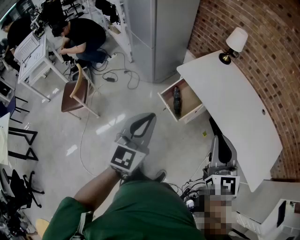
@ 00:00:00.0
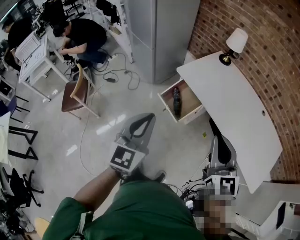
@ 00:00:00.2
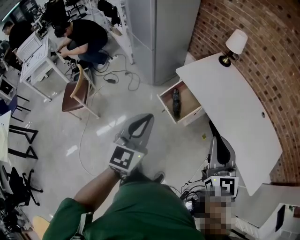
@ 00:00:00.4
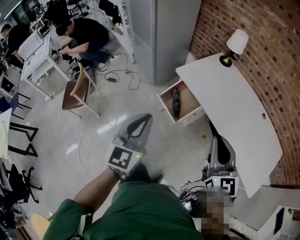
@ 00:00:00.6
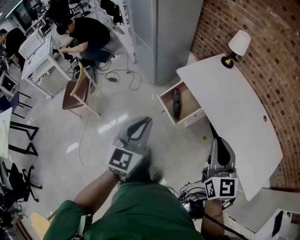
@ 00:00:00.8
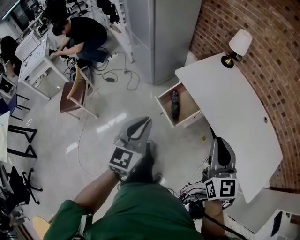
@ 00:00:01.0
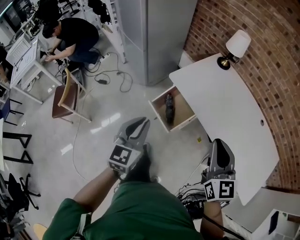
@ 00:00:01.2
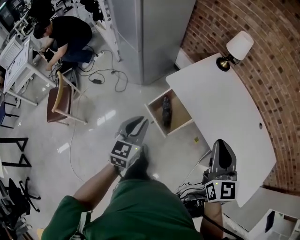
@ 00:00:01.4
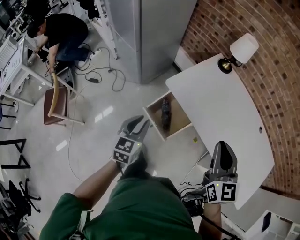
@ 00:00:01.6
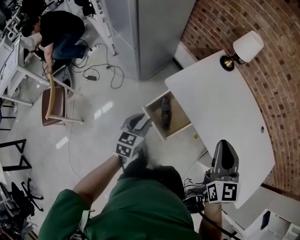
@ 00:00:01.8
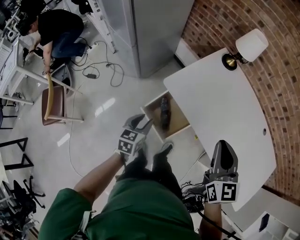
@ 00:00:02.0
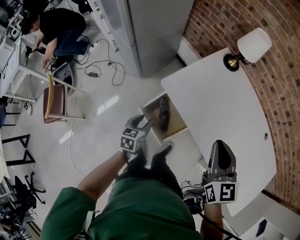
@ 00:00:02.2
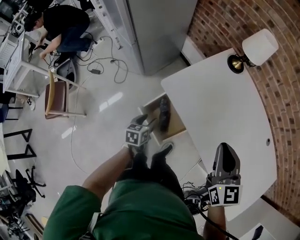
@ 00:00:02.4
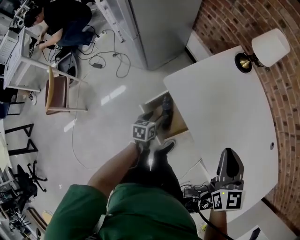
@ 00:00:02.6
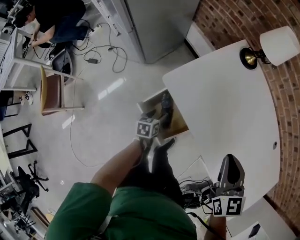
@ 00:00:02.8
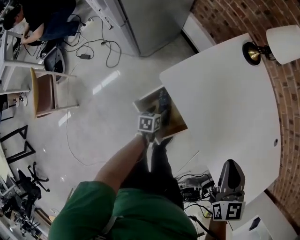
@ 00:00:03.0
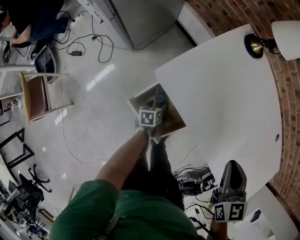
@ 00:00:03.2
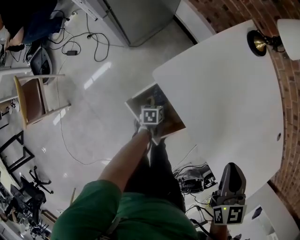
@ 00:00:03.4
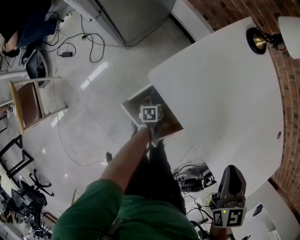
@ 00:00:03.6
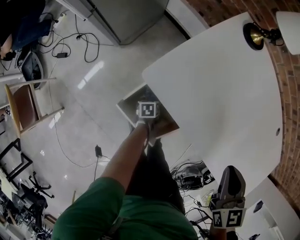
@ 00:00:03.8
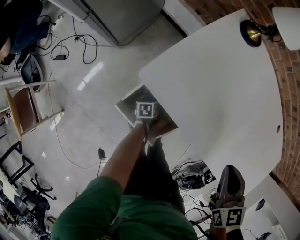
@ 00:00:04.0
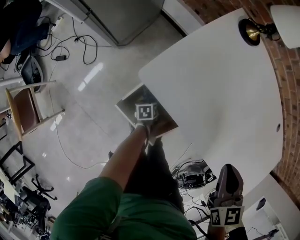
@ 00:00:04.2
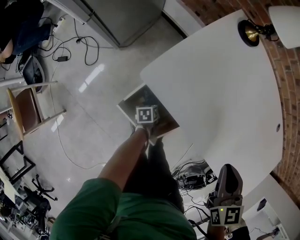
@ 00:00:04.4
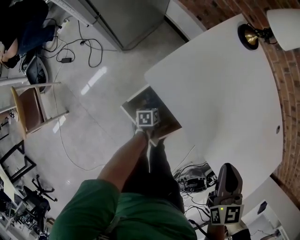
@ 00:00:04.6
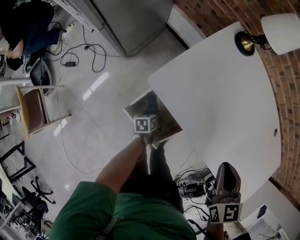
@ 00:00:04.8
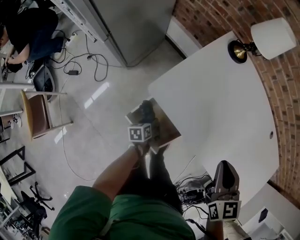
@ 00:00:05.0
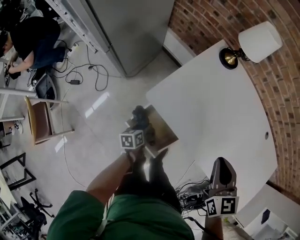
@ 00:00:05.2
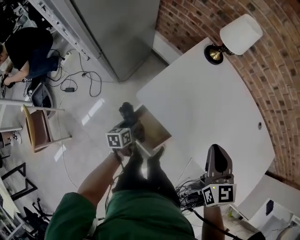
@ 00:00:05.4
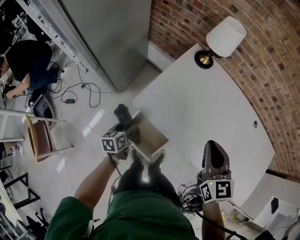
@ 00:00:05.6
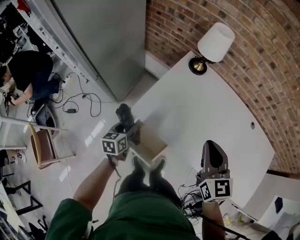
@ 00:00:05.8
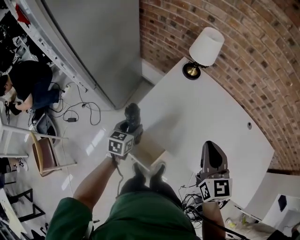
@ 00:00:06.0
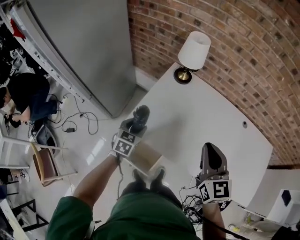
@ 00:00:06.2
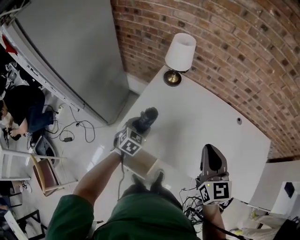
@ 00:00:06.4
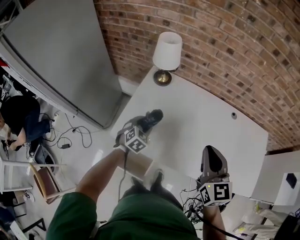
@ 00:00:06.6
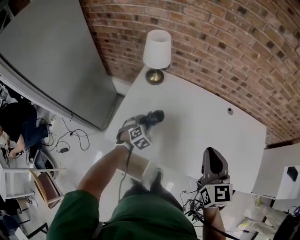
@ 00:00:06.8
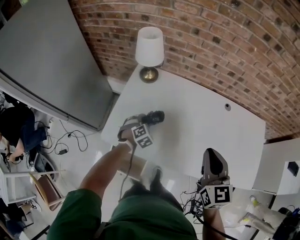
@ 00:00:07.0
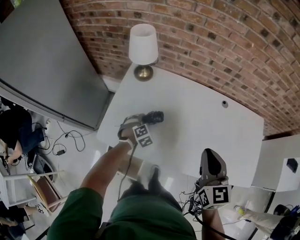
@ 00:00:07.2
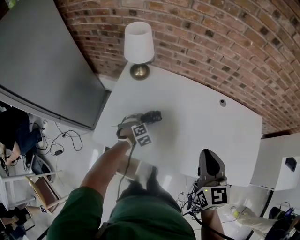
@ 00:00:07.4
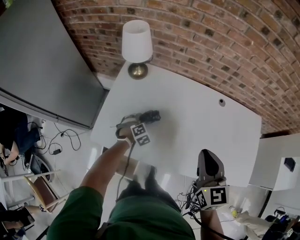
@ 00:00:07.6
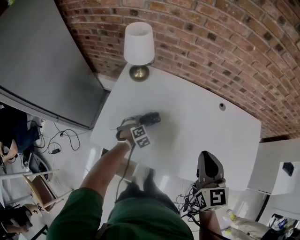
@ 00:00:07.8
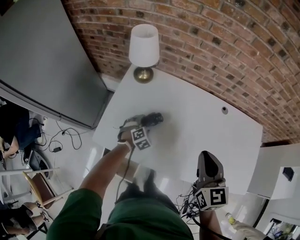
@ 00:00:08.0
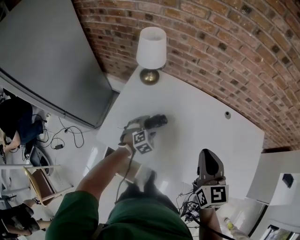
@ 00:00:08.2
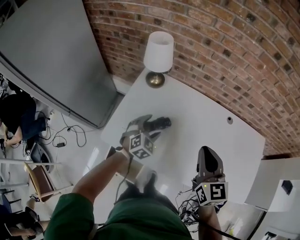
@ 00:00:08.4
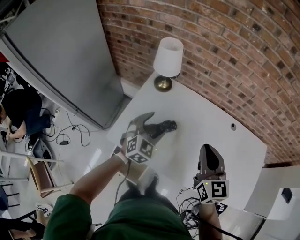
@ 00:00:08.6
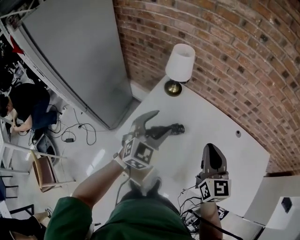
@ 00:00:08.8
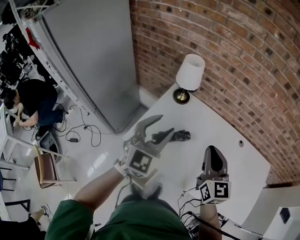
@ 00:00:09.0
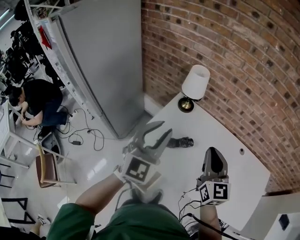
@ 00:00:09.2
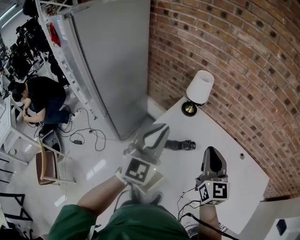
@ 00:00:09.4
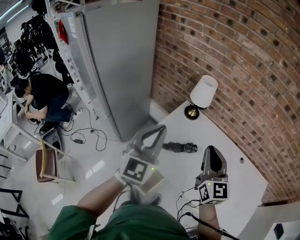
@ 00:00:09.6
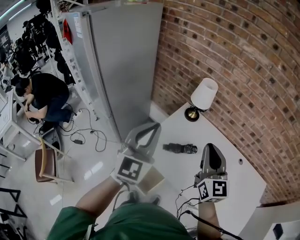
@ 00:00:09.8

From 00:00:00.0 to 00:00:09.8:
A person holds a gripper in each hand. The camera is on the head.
From 00:00:00.0 to 00:00:01.4: The right gripper moves forward, some 20 cm, while the left gripper heads forward and downward, covering some 25 cm.
From 00:00:01.4 to 00:00:02.8: The right gripper is displaced forward and downward by about 25 cm. Meanwhile the left gripper goes roughly 40 cm downward and forward, changes its angle by roughly 40 degrees, and opens up.
From 00:00:02.8 to 00:00:04.2: The right gripper shifts roughly 10 cm downward, while the left gripper travels downward by some 20 cm.
From 00:00:04.2 to 00:00:05.6: The left gripper shifts about 35 cm upward, and swivels approximately 30 degrees. The right gripper moves upward, roughly 15 cm, and rotates about 20 degrees.
From 00:00:05.6 to 00:00:07.0: The left gripper goes approximately 35 cm to the right and forward, and twists about 90 degrees clockwise, seen from behind; the right gripper goes some 20 cm to the right, and turns by about 20 degrees.
From 00:00:07.0 to 00:00:08.4: The right gripper travels forward by some 5 cm; the left gripper moves upward, some 10 cm, changes its angle by approximately 20 degrees, and opens up.
From 00:00:08.4 to 00:00:09.8: The left gripper moves upward, to the left and backward, roughly 50 cm, points its fingers some 50 degrees further upward, and closes. Meanwhile the right gripper is displaced to the left and upward by some 20 cm, and turns by roughly 20 degrees.

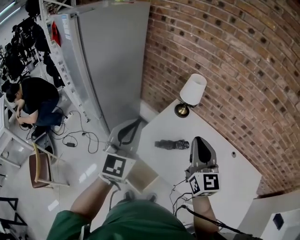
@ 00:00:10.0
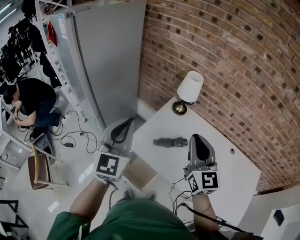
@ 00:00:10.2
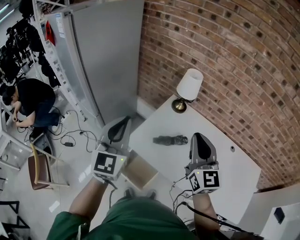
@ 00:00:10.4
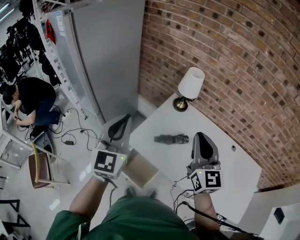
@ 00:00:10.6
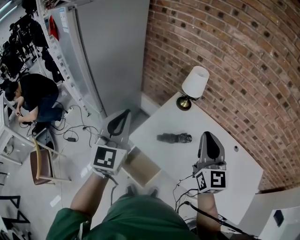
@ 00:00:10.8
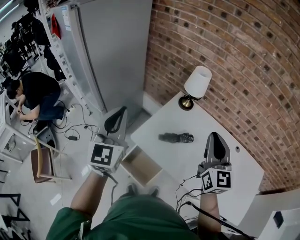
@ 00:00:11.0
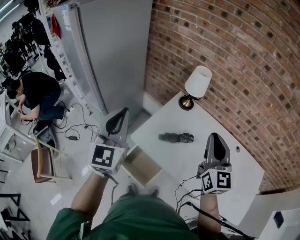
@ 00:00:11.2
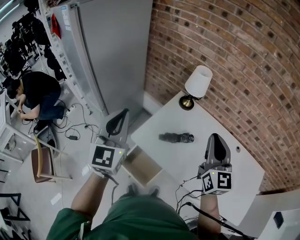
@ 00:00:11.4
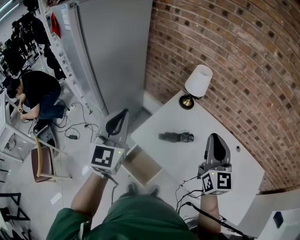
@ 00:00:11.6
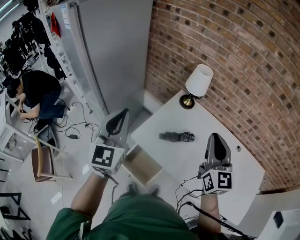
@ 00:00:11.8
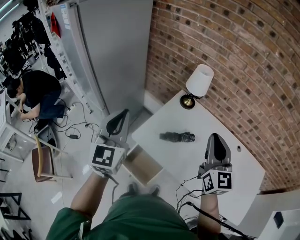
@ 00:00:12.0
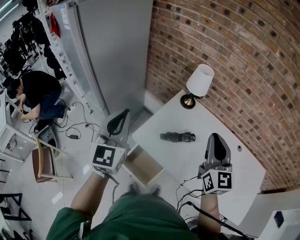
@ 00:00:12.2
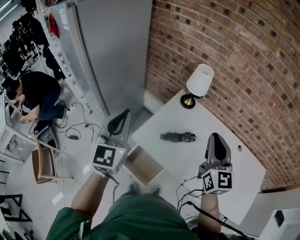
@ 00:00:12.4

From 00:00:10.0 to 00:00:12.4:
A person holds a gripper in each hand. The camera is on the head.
From 00:00:10.0 to 00:00:11.2: The left gripper moves to the left, roughly 5 cm.
From 00:00:11.2 to 00:00:12.4: There are only small adjustments of the grippers.

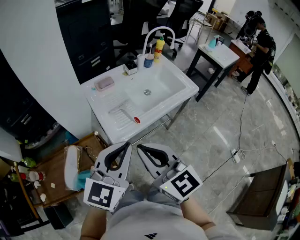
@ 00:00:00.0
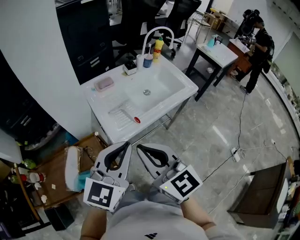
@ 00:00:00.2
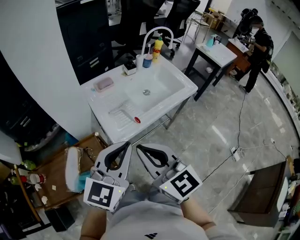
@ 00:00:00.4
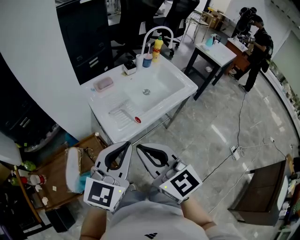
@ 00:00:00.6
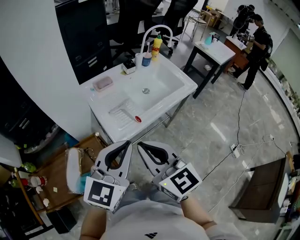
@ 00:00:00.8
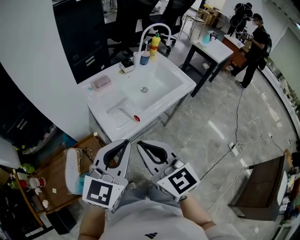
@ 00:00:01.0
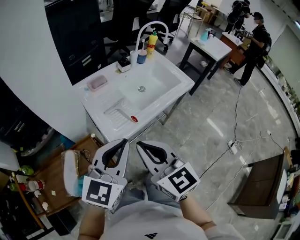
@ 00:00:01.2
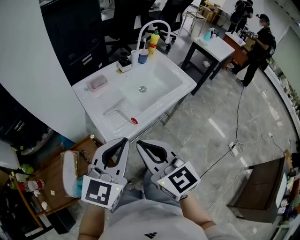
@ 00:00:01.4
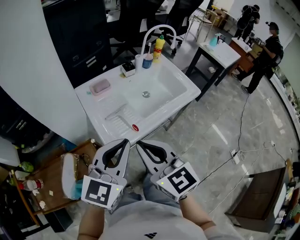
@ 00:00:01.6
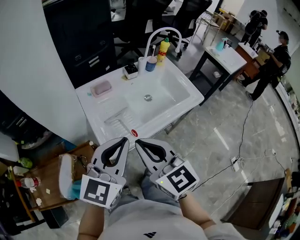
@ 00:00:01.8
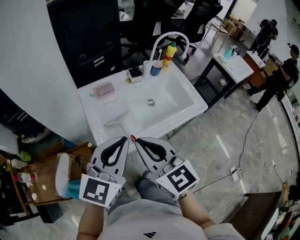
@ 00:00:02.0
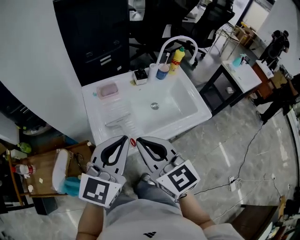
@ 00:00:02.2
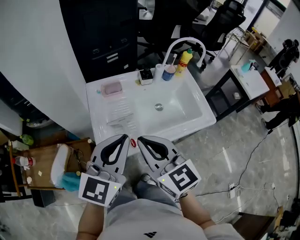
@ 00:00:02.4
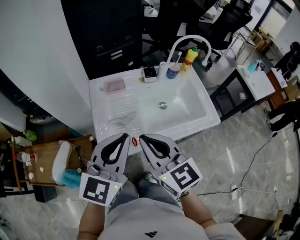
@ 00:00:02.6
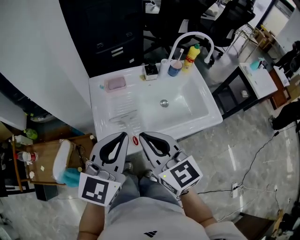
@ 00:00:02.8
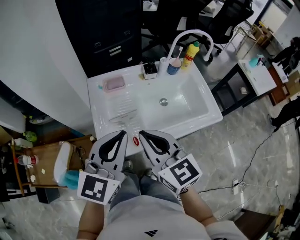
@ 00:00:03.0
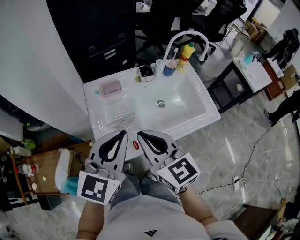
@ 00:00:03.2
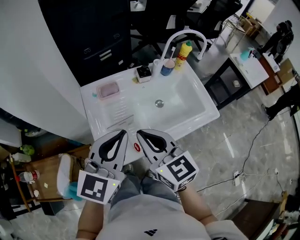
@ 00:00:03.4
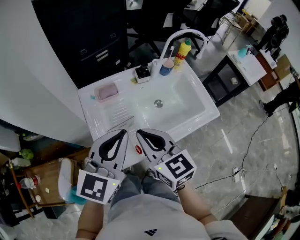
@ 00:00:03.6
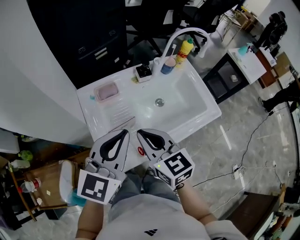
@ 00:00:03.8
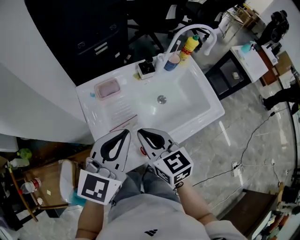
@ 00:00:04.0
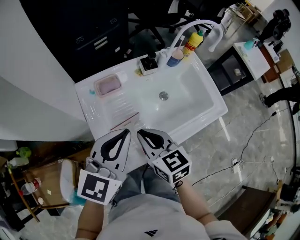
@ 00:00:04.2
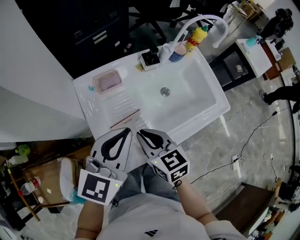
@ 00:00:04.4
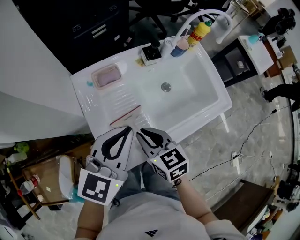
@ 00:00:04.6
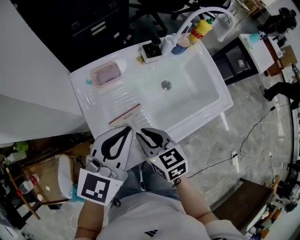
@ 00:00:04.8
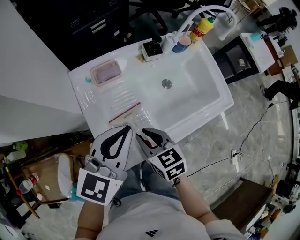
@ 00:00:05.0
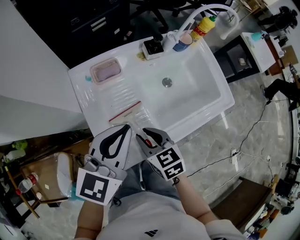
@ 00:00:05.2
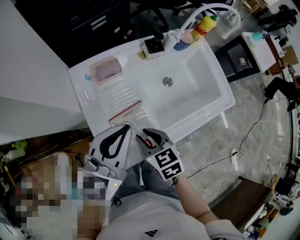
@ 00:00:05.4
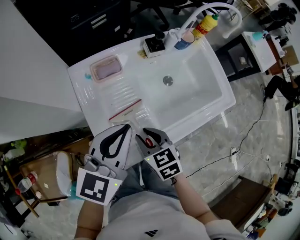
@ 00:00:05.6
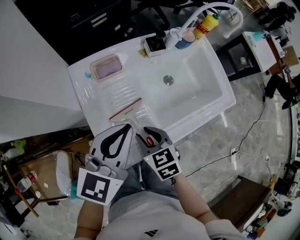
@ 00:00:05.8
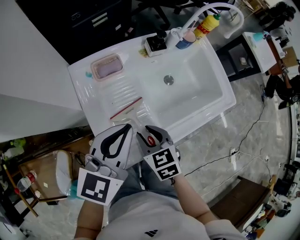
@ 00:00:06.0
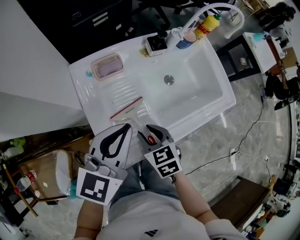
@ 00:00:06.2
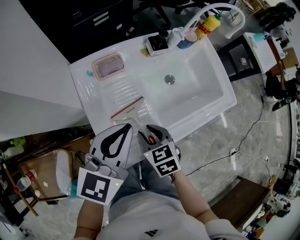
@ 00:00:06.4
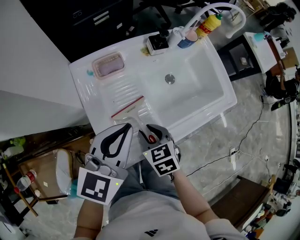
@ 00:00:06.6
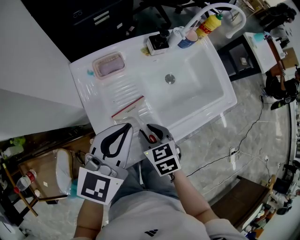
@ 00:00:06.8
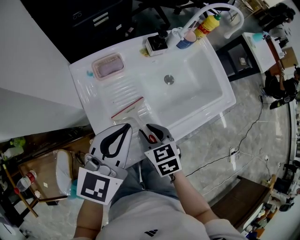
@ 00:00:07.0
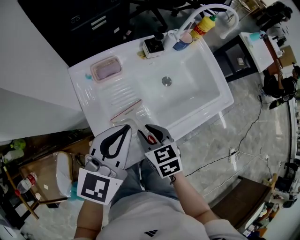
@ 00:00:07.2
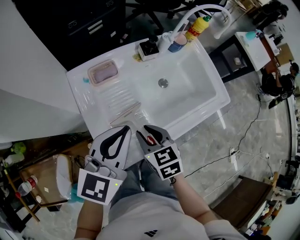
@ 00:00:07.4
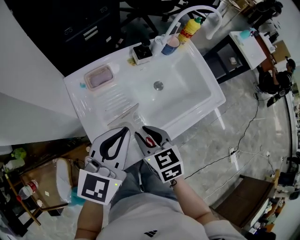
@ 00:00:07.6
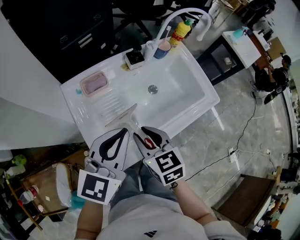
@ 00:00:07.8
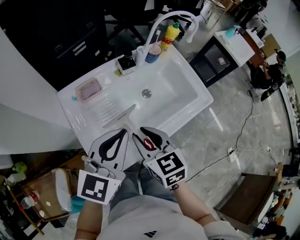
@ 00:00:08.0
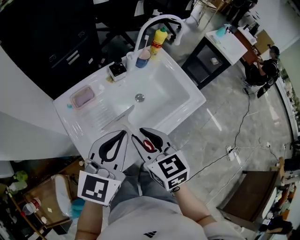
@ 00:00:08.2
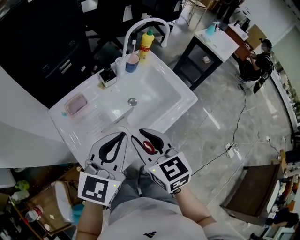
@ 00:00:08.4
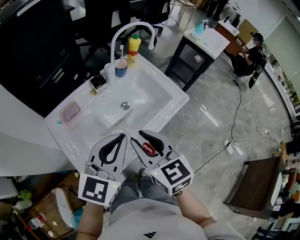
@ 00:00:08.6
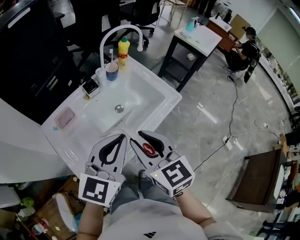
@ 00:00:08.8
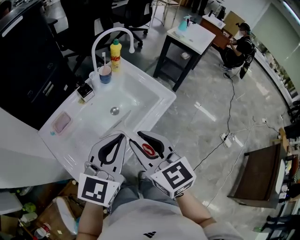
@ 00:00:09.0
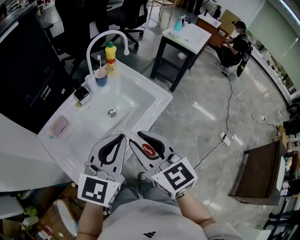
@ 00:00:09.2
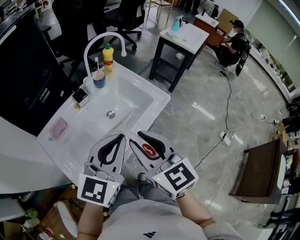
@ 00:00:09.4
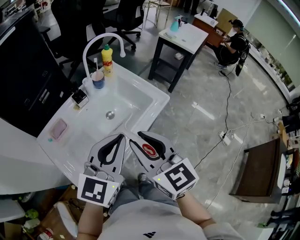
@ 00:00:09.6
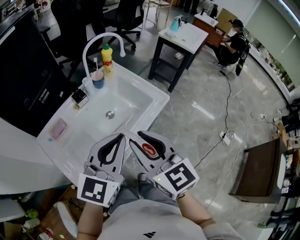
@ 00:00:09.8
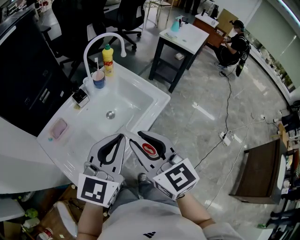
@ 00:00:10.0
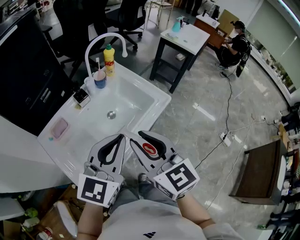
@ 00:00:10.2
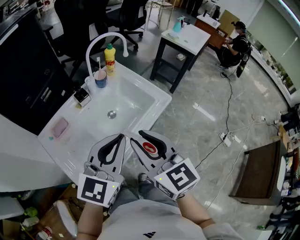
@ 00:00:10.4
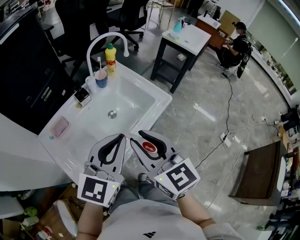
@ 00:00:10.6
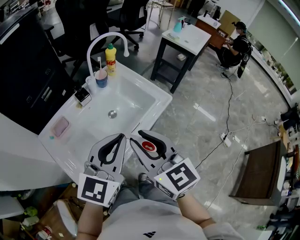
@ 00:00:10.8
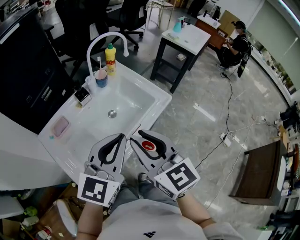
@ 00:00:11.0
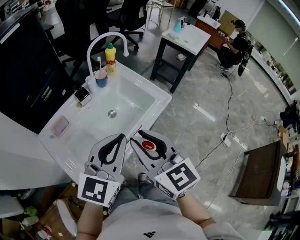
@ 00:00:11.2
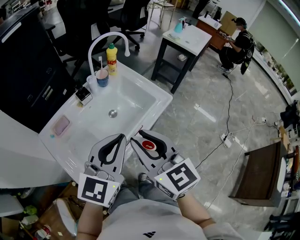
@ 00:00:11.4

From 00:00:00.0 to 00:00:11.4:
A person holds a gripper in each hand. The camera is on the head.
From 00:00:00.0 to 00:00:01.4: The grippers move only a little.
From 00:00:01.4 to 00:00:02.8: The two grippers go roughly 15 cm forward and to the right. The right gripper changes its angle by roughly 20 degrees. Meanwhile the left gripper turns by some 20 degrees.
From 00:00:02.8 to 00:00:04.2: The left gripper moves forward, roughly 10 cm. The right gripper travels downward and forward by roughly 15 cm, and changes its angle by some 20 degrees.
From 00:00:04.2 to 00:00:05.6: The right gripper travels downward by approximately 10 cm, and opens its fingers.
From 00:00:05.6 to 00:00:07.2: The grippers stay close to where they were, moving slightly.
From 00:00:07.2 to 00:00:08.6: The right gripper goes about 20 cm upward and to the right, and turns by roughly 30 degrees; the left gripper moves to the right and upward, some 15 cm.
From 00:00:08.6 to 00:00:10.0: The right gripper heads to the right and upward, covering about 10 cm; the left gripper travels to the right by roughly 5 cm.
From 00:00:10.0 to 00:00:11.4: The two grippers keep their place.
